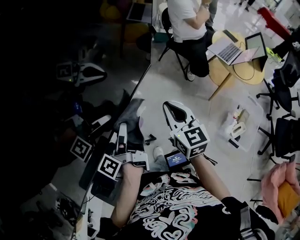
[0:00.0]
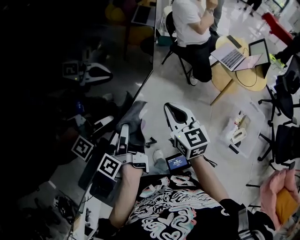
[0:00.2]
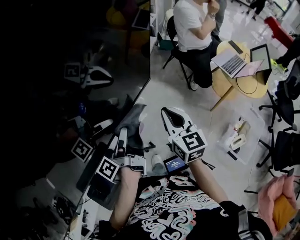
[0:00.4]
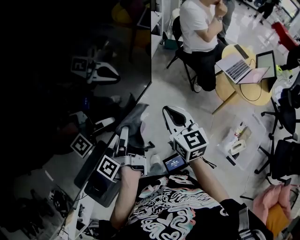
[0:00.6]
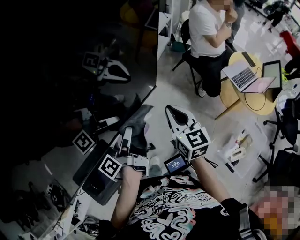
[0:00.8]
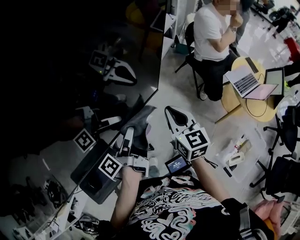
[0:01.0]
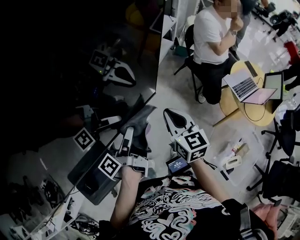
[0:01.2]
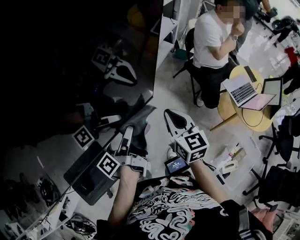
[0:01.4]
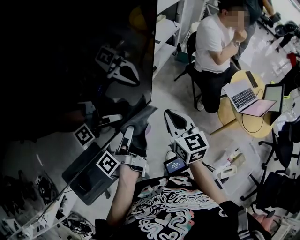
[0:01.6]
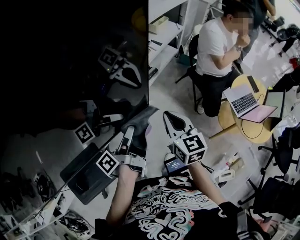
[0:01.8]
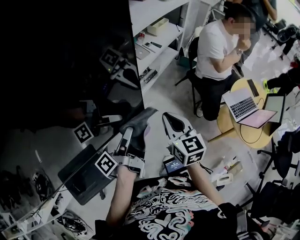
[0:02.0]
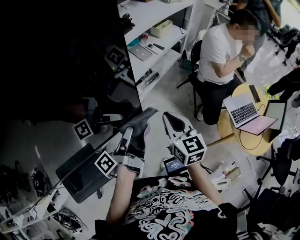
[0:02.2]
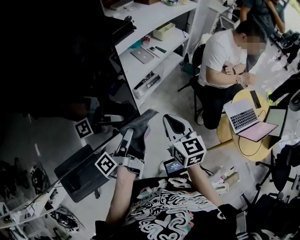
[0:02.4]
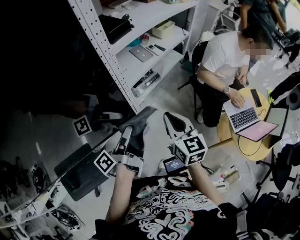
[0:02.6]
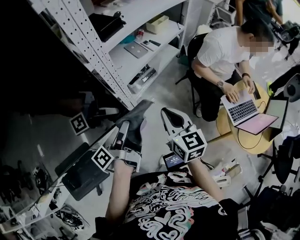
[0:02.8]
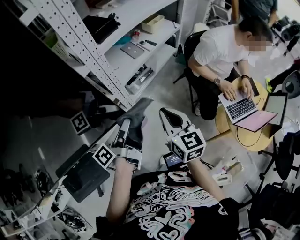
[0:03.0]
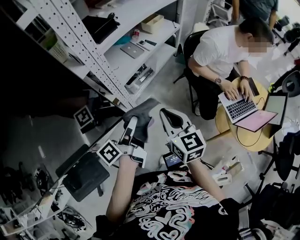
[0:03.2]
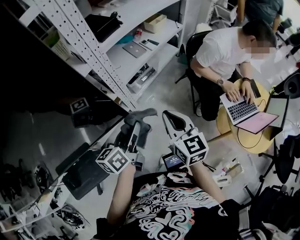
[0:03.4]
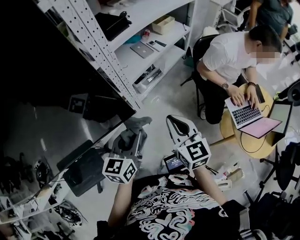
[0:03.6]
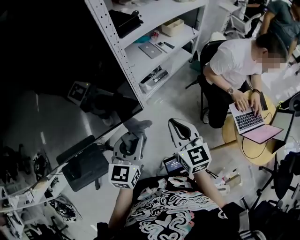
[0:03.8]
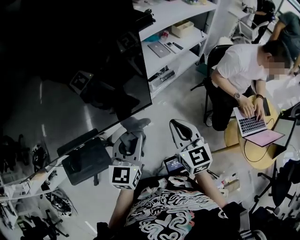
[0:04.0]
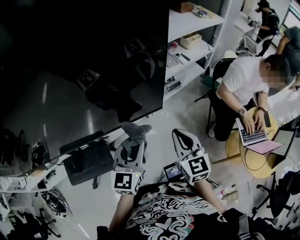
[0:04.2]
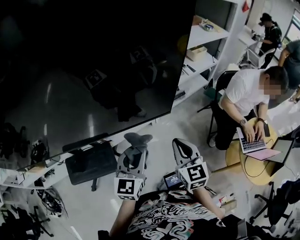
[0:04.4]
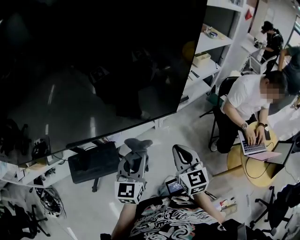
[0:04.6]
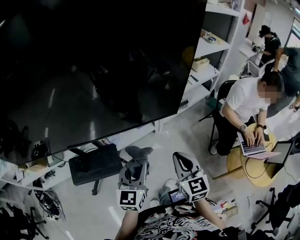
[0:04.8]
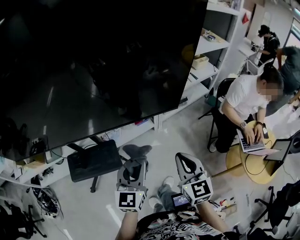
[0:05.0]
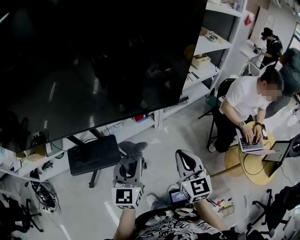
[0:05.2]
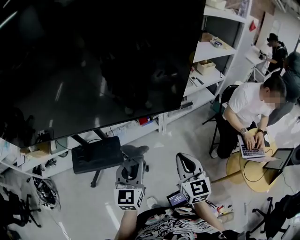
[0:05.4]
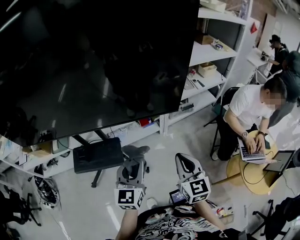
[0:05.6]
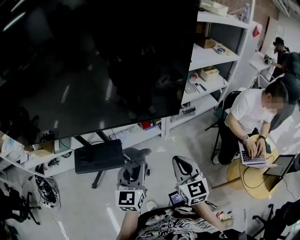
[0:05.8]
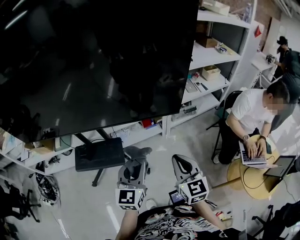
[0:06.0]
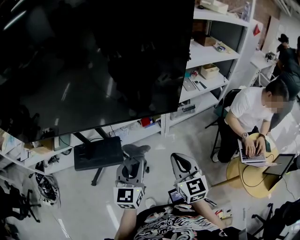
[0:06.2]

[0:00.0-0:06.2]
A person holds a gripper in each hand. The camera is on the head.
0:00.0 to 0:01.6: The right gripper is displaced forward and to the right by roughly 15 cm. Meanwhile the left gripper is displaced to the right and forward by approximately 15 cm.
0:01.6 to 0:03.2: The left gripper moves to the right and forward, roughly 15 cm; the right gripper is displaced to the right by roughly 10 cm.
0:03.2 to 0:04.6: Both grippers travel together backward and to the left, approximately 25 cm. The left gripper twists about 80 degrees clockwise, seen from behind.
0:04.6 to 0:06.2: The two grippers go about 10 cm backward.

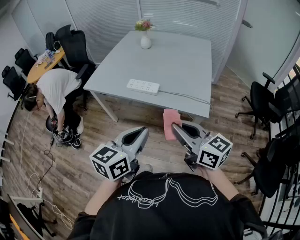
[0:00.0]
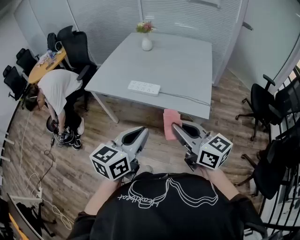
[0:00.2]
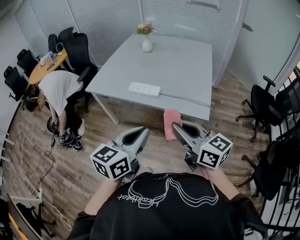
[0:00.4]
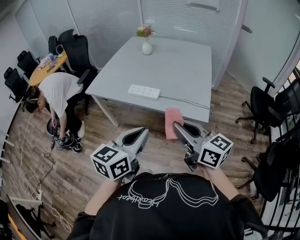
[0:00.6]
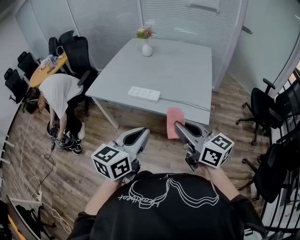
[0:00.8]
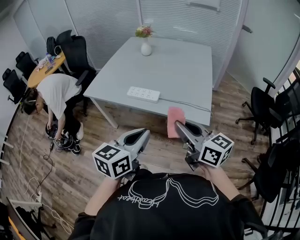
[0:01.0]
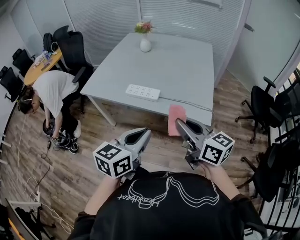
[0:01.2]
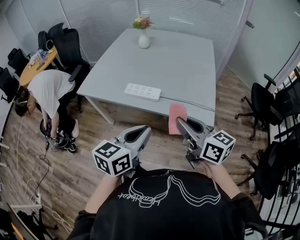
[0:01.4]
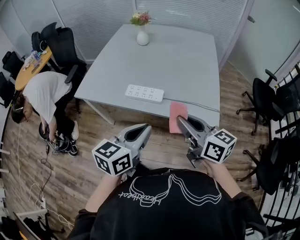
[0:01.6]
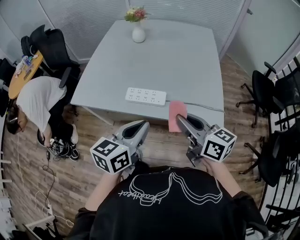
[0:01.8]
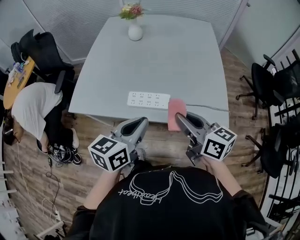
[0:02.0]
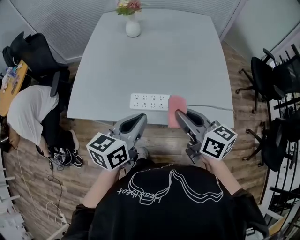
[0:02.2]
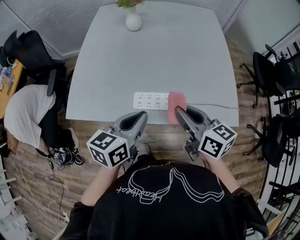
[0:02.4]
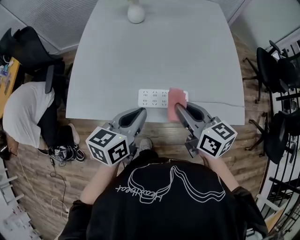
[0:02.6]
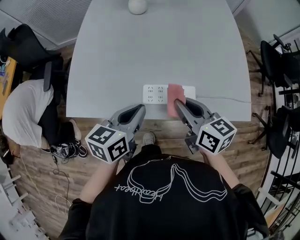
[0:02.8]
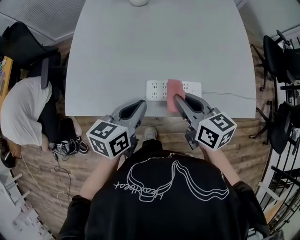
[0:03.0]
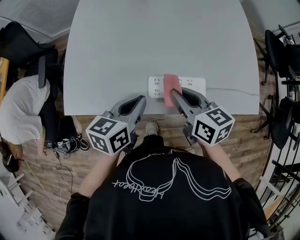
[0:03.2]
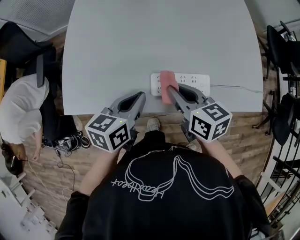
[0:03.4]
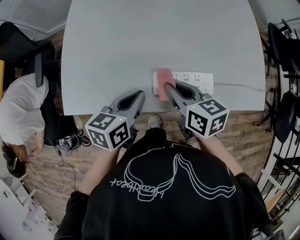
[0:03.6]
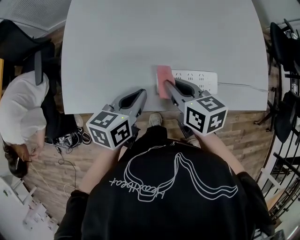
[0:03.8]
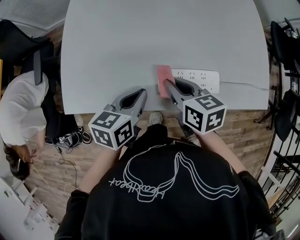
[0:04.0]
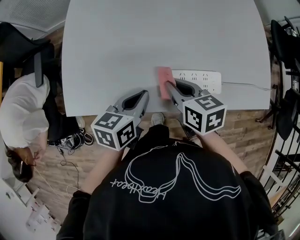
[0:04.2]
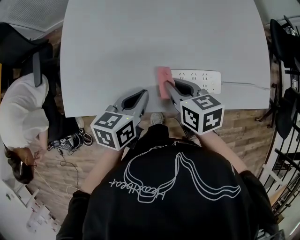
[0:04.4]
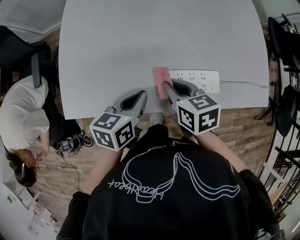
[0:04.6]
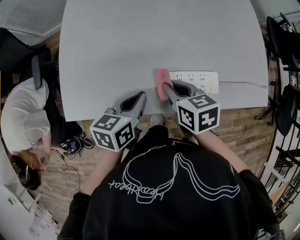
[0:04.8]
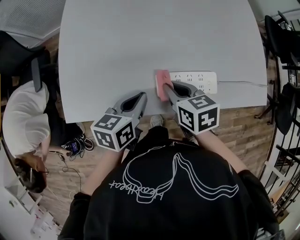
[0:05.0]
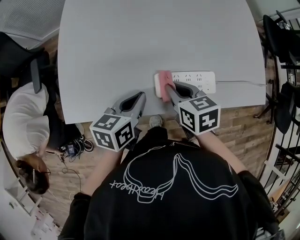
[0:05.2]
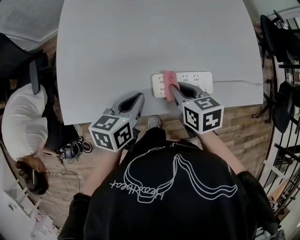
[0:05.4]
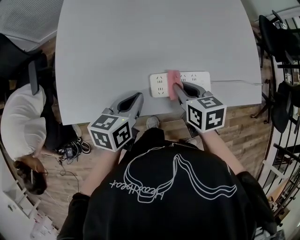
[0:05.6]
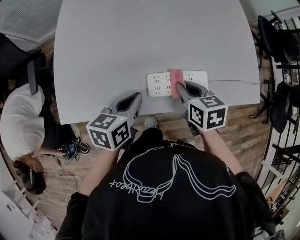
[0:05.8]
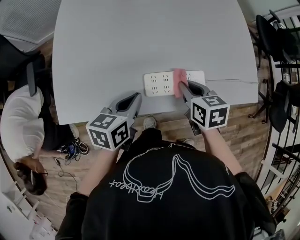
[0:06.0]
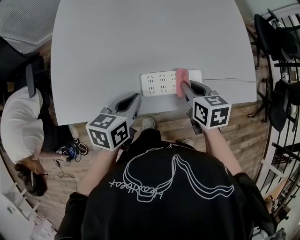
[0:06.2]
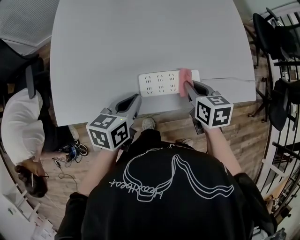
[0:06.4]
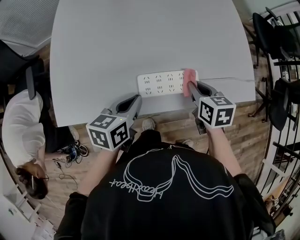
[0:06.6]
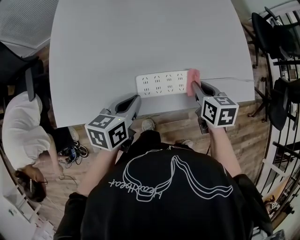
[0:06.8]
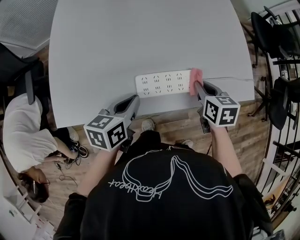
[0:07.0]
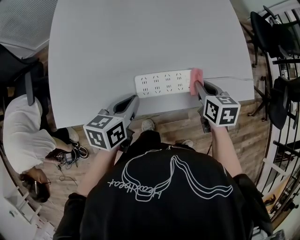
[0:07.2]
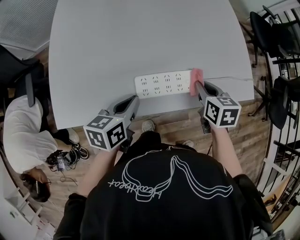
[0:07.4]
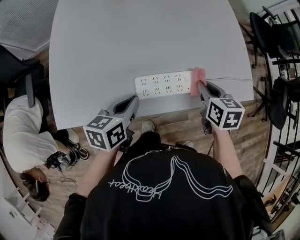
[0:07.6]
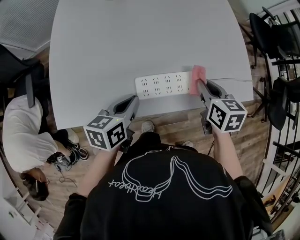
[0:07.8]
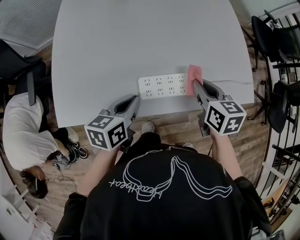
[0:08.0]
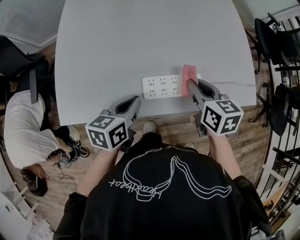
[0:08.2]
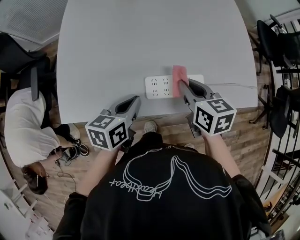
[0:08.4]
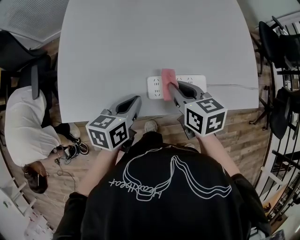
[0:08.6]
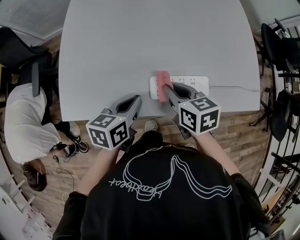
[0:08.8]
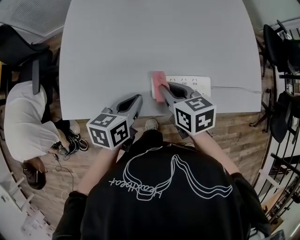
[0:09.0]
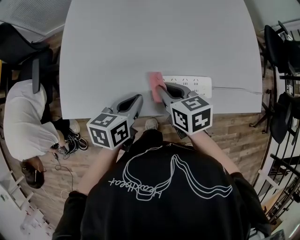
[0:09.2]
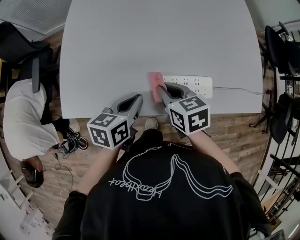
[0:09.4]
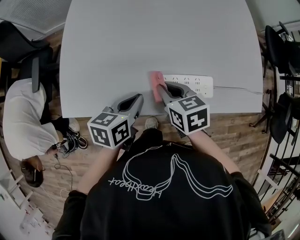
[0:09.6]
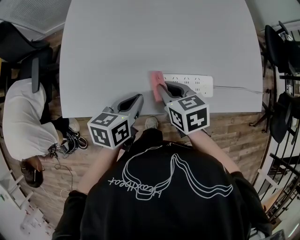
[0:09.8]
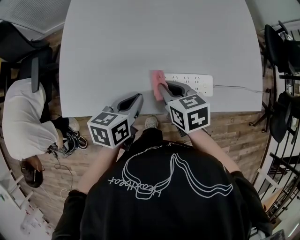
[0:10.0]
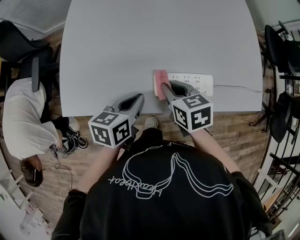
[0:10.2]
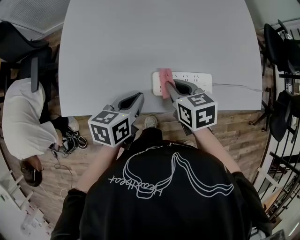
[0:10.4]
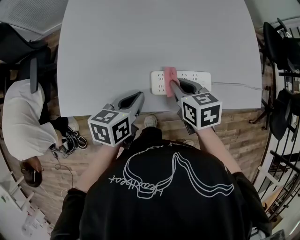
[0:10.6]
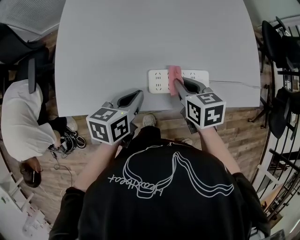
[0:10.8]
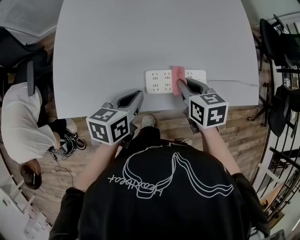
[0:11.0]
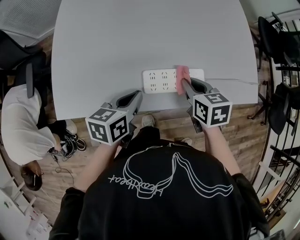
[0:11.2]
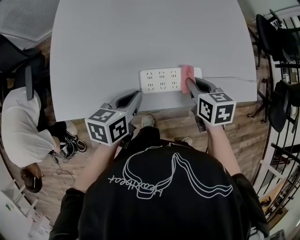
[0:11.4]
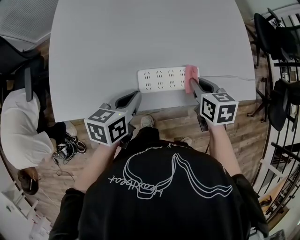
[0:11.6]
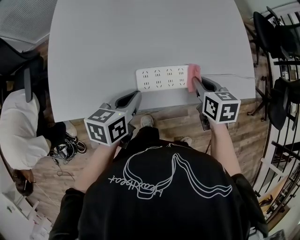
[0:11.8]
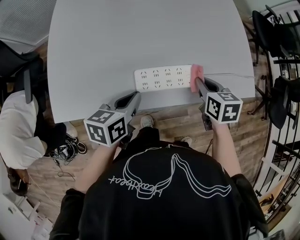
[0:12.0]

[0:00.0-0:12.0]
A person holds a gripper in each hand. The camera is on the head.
0:00.0 to 0:01.6: Both grippers move forward, roughly 15 cm.
0:01.6 to 0:03.0: The two grippers go about 35 cm forward, to the left and downward. The left gripper rotates some 20 degrees. The right gripper rotates some 20 degrees.
0:03.0 to 0:04.4: The left gripper goes some 10 cm downward. Meanwhile the right gripper heads downward and to the left, covering roughly 15 cm.
0:04.4 to 0:06.0: The right gripper travels to the right by about 10 cm.
0:06.0 to 0:07.6: The right gripper heads to the right, covering approximately 10 cm.
0:07.6 to 0:09.0: The right gripper shifts approximately 20 cm to the left, and rotates roughly 20 degrees.
0:09.0 to 0:10.4: There are only small adjustments of the grippers.
0:10.4 to 0:12.0: The right gripper goes approximately 20 cm to the right. The left gripper shifts some 5 cm to the right.

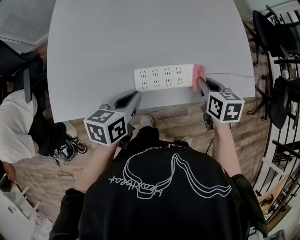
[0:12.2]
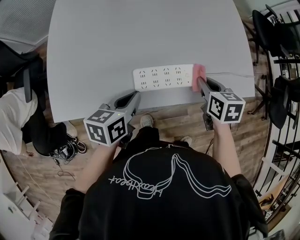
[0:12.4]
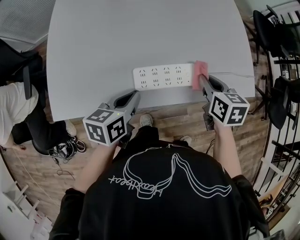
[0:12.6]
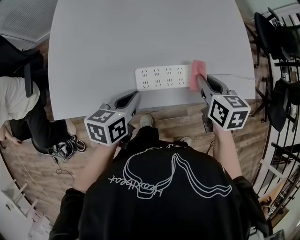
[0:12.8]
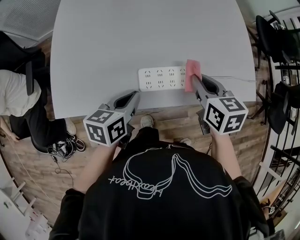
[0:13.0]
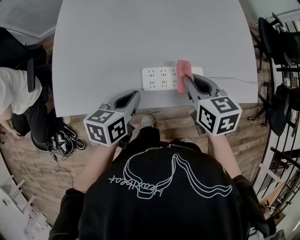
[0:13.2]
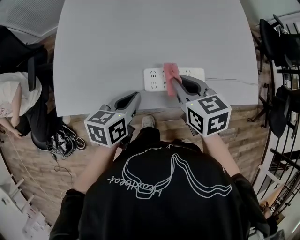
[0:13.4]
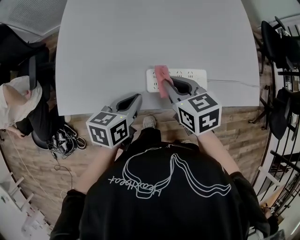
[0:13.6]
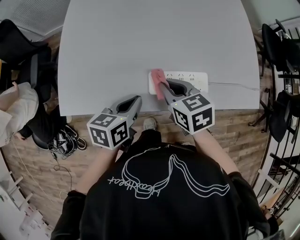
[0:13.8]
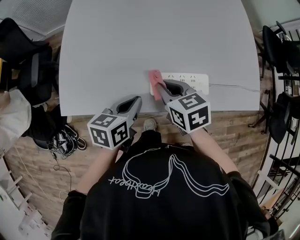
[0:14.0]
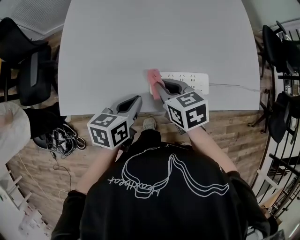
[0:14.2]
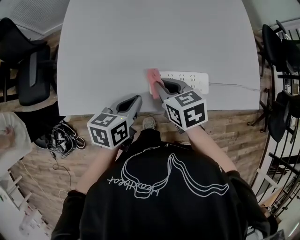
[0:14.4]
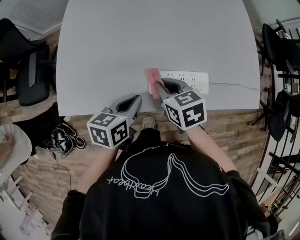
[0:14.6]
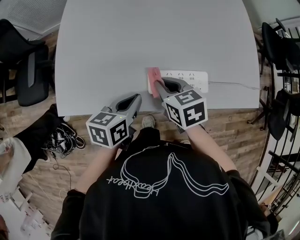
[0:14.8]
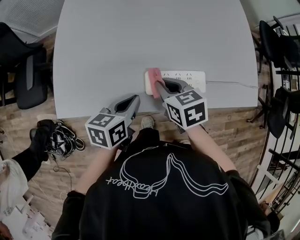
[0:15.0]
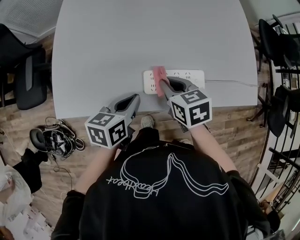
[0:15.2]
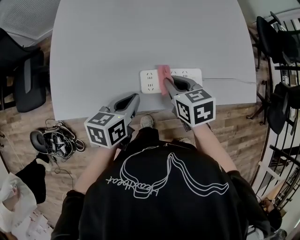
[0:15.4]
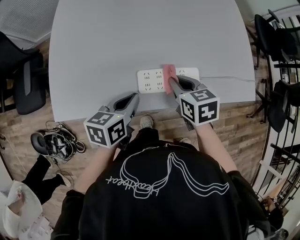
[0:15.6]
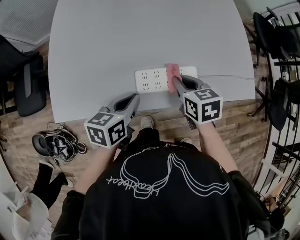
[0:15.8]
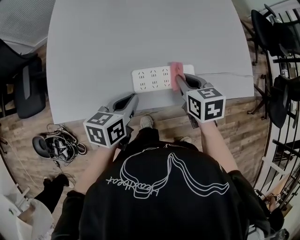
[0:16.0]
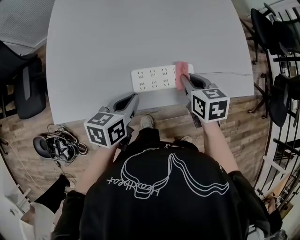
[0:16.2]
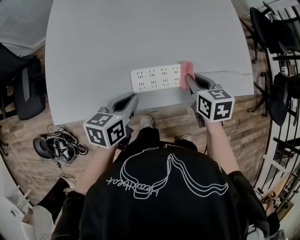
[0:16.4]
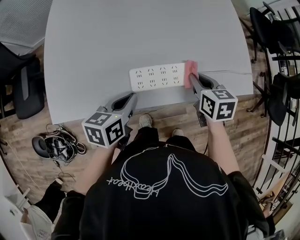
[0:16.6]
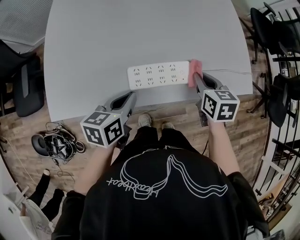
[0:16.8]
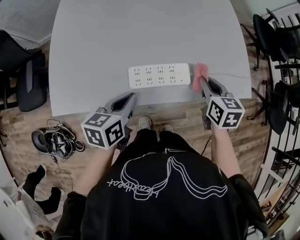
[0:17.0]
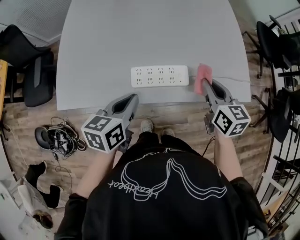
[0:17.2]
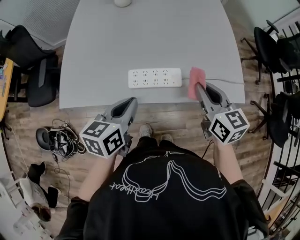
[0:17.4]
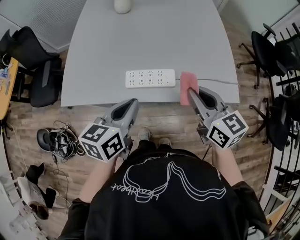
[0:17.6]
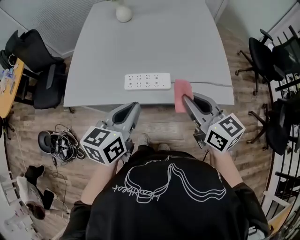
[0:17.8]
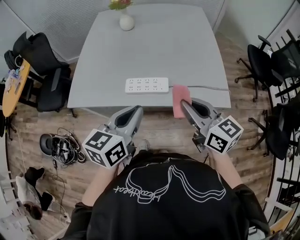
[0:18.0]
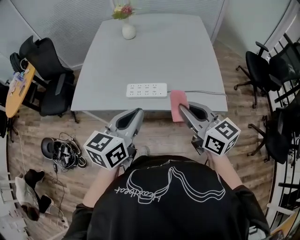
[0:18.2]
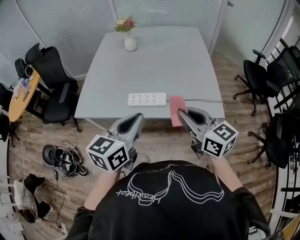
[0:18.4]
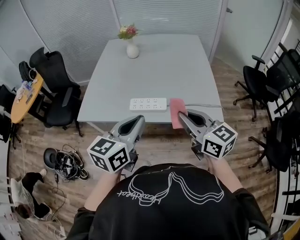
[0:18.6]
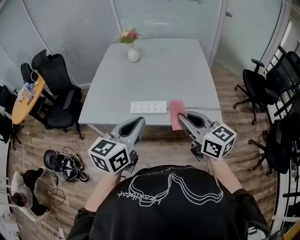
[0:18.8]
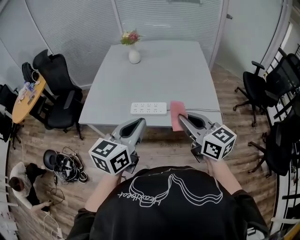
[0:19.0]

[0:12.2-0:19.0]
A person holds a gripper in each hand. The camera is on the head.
0:12.2 to 0:13.6: The right gripper moves to the left, some 20 cm, and changes its angle by approximately 20 degrees.
0:13.6 to 0:15.0: The grippers stay close to where they were, moving slightly.
0:15.0 to 0:16.2: The right gripper goes approximately 15 cm to the right.
0:16.2 to 0:17.6: The grippers both shift upward, to the right and backward by roughly 20 cm. The right gripper tips its fingers upward by some 30 degrees.
0:17.6 to 0:19.0: The right gripper moves backward and upward, approximately 15 cm, while the left gripper travels upward, backward and to the right by about 20 cm, and changes its angle by approximately 20 degrees.
